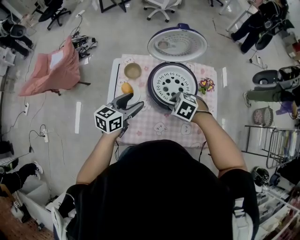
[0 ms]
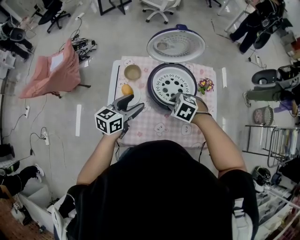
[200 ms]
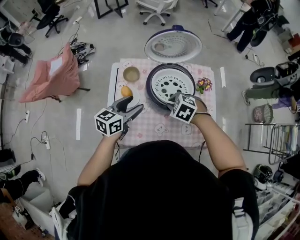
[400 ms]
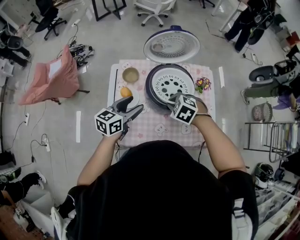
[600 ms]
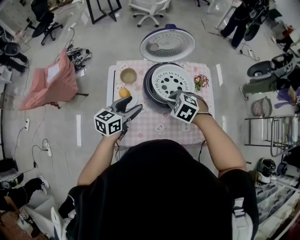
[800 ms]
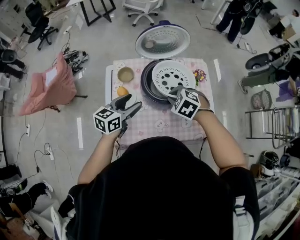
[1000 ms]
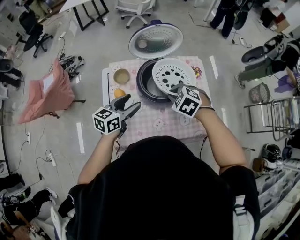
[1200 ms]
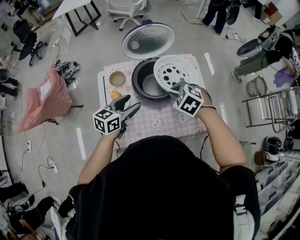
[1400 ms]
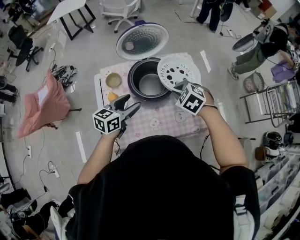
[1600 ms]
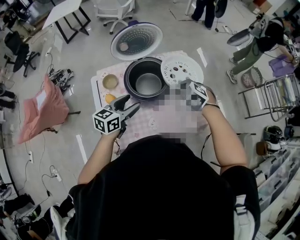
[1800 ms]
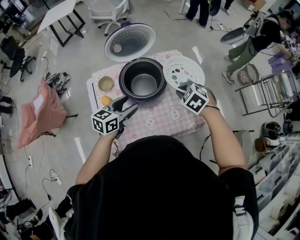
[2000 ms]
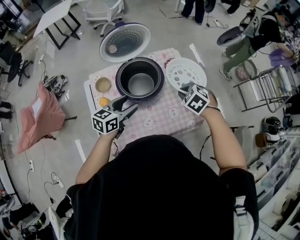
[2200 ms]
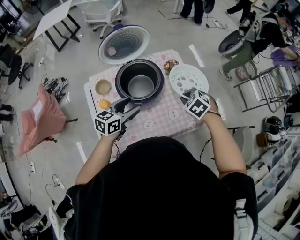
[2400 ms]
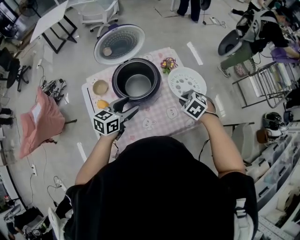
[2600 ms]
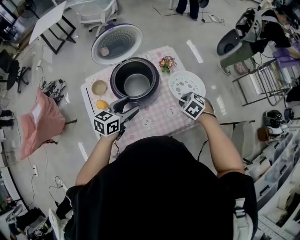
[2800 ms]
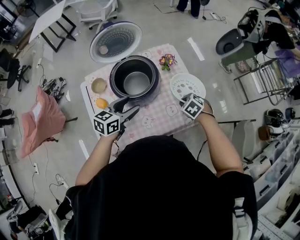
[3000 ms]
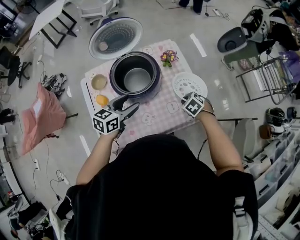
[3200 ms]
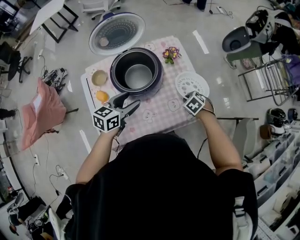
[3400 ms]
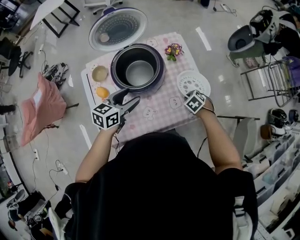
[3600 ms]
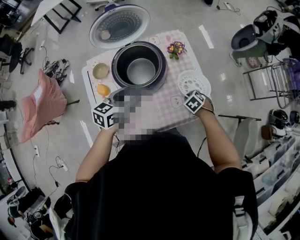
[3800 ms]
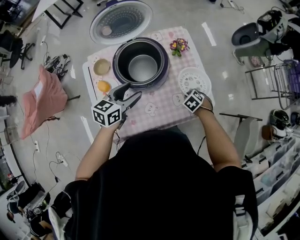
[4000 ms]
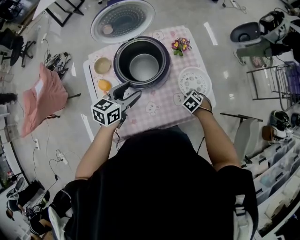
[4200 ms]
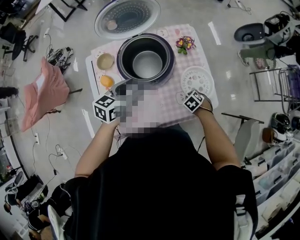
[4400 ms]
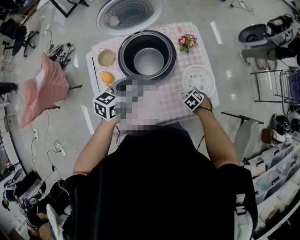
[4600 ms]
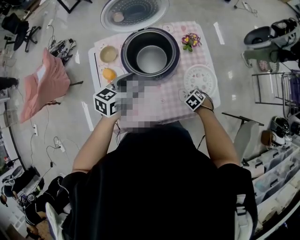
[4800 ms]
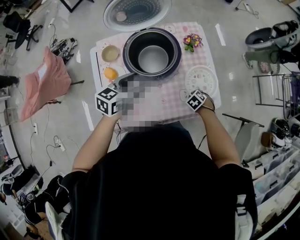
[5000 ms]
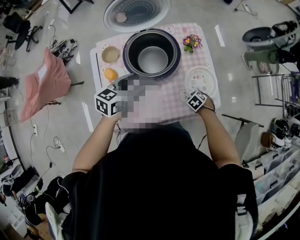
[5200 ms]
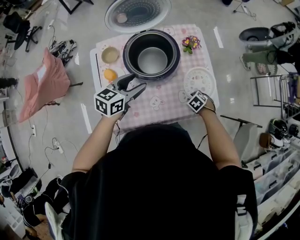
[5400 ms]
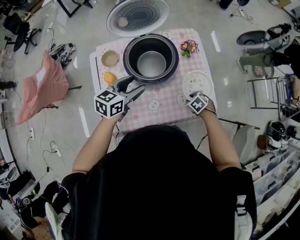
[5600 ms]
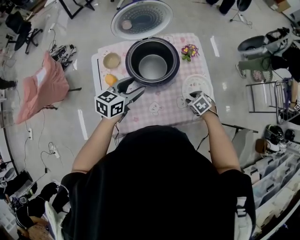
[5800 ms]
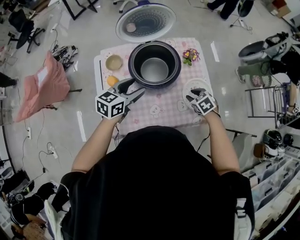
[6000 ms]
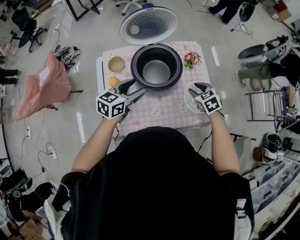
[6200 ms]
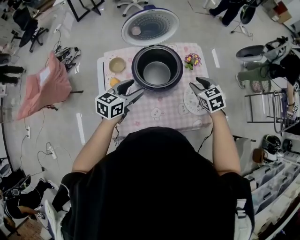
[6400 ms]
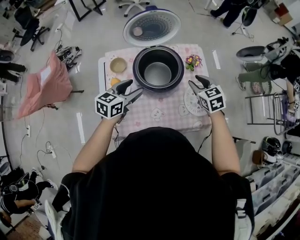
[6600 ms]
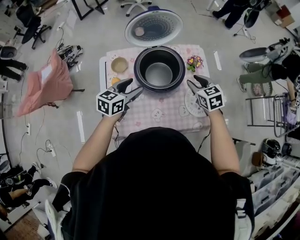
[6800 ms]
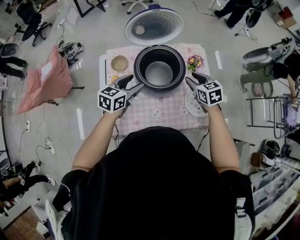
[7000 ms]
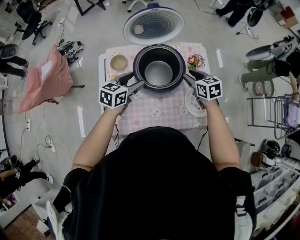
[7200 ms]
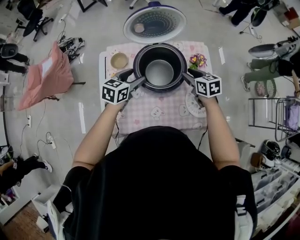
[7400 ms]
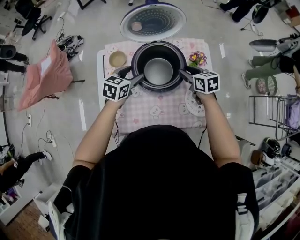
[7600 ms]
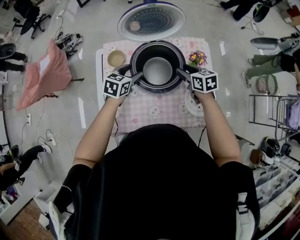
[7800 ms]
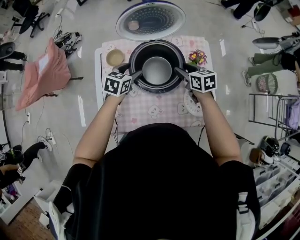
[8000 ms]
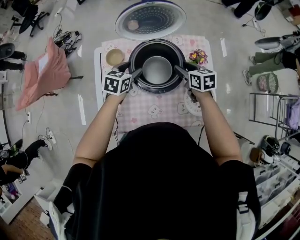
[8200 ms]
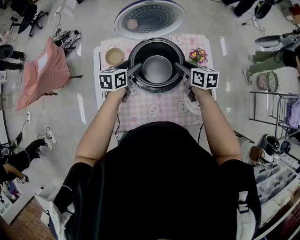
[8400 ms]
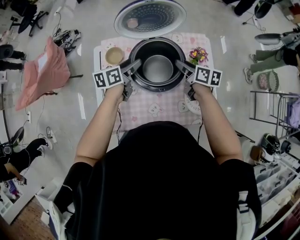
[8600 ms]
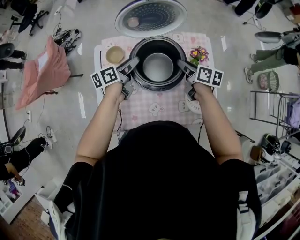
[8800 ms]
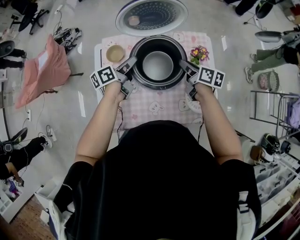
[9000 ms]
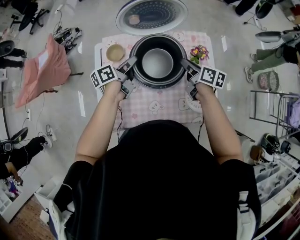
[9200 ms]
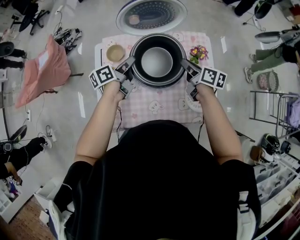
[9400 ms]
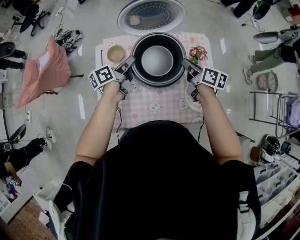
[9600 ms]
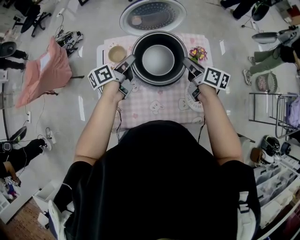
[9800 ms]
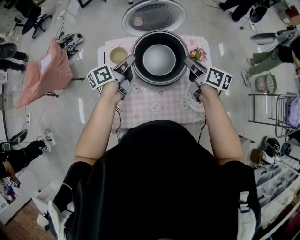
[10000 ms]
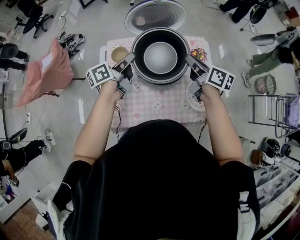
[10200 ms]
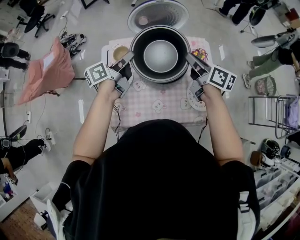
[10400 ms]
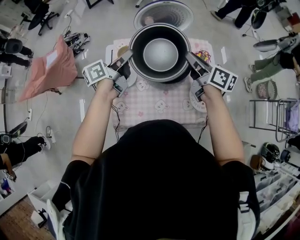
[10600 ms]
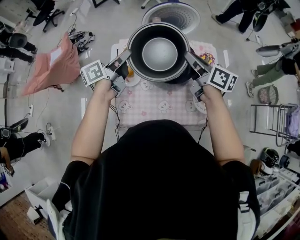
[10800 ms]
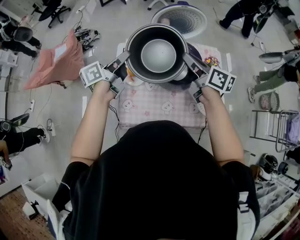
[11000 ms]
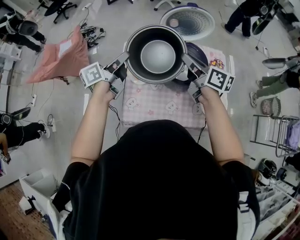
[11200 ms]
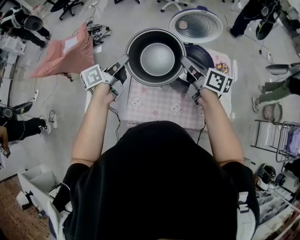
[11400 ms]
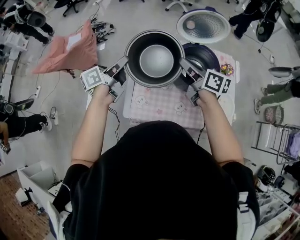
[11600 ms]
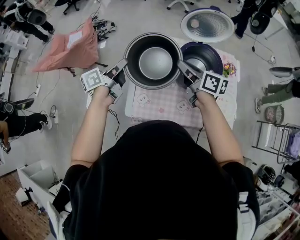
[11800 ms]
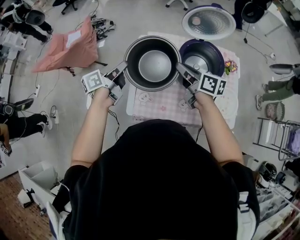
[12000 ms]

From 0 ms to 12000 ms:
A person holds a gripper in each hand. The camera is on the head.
From 0 ms to 1600 ms: The right gripper moves about 10 cm, and turns by approximately 30 degrees, while the left gripper shifts by approximately 5 cm.
From 1600 ms to 3000 ms: The right gripper moves to the right and downward, approximately 20 cm, and turns by roughly 20 degrees, while the left gripper heads to the right, covering about 10 cm.
From 3000 ms to 4400 ms: The right gripper goes approximately 15 cm downward.
From 4400 ms to 6000 ms: The right gripper goes roughly 15 cm upward.
From 6000 ms to 7600 ms: The right gripper travels forward, to the left and upward by about 15 cm, and turns by roughly 30 degrees, while the left gripper heads forward and downward, covering some 10 cm.
From 7600 ms to 9000 ms: The right gripper swivels about 30 degrees; the left gripper travels forward by approximately 5 cm, rolls counterclockwise, seen from behind, by approximately 50 degrees, and closes.
From 9000 ms to 10400 ms: The grippers both shift upward by about 15 cm. The left gripper closes its fingers.
From 10400 ms to 12000 ms: The grippers both shift to the left by approximately 25 cm.

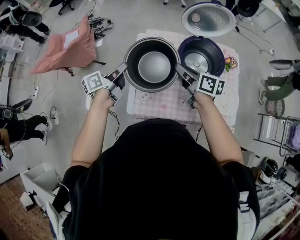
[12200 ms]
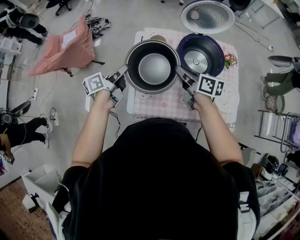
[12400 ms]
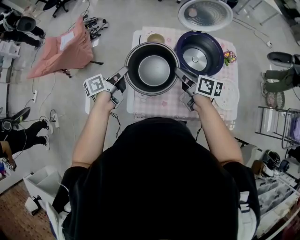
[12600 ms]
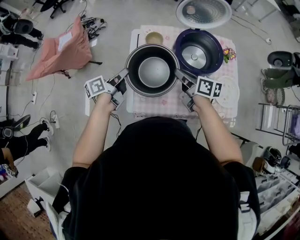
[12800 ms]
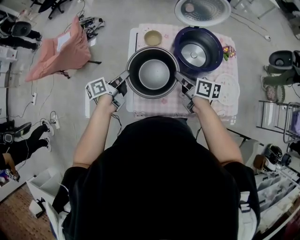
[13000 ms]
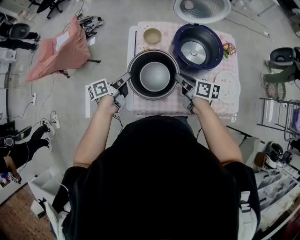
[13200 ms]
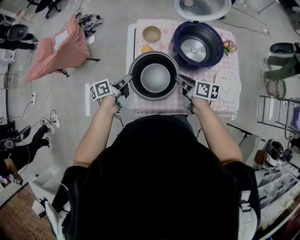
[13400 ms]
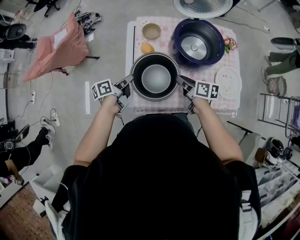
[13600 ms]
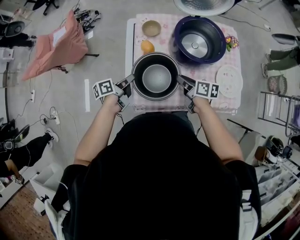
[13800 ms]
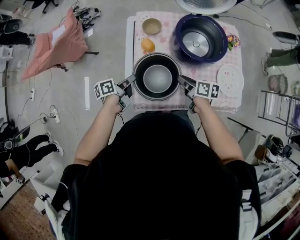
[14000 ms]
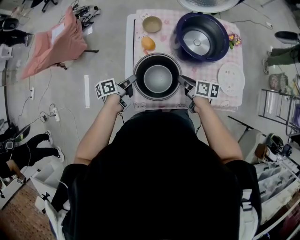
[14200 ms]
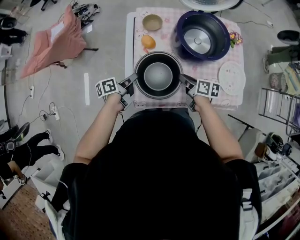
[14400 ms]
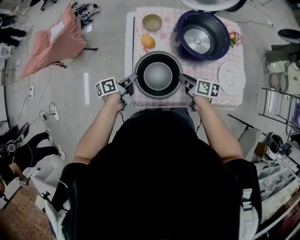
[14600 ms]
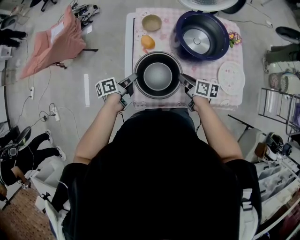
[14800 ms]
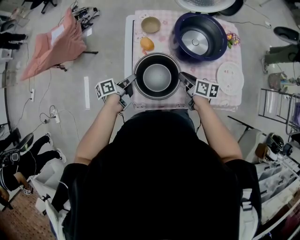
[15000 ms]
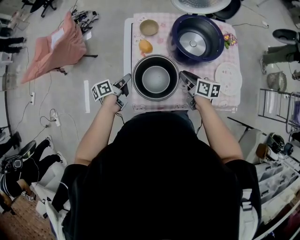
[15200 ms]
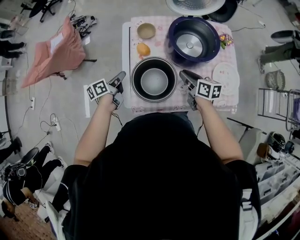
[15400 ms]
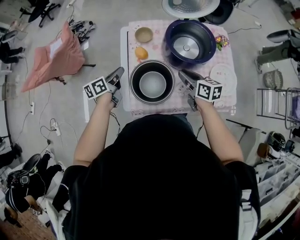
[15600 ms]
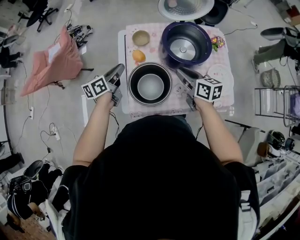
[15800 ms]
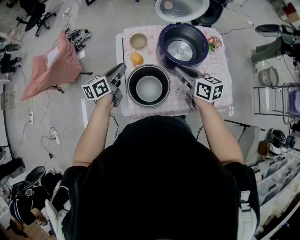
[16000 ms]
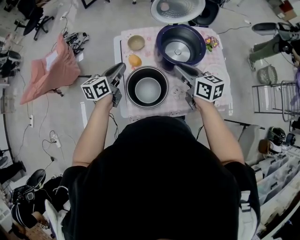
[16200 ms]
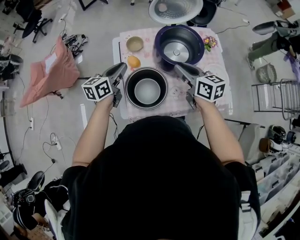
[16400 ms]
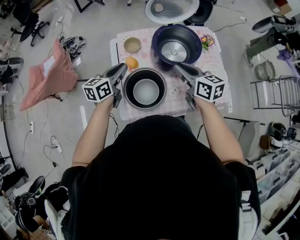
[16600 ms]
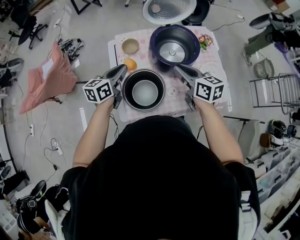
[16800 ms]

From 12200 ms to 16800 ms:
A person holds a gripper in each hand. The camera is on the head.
From 12200 ms to 13800 ms: The right gripper travels downward and backward by about 20 cm. Meanwhile the left gripper is displaced downward by some 15 cm.
From 13800 ms to 15200 ms: The grippers make only small movements.
From 15200 ms to 16800 ms: The right gripper is displaced upward by roughly 15 cm, and rotates approximately 20 degrees. Meanwhile the left gripper shifts approximately 20 cm upward, to the right and forward, and rotates around the line of its fingers by roughly 50 degrees, clockwise from behind.

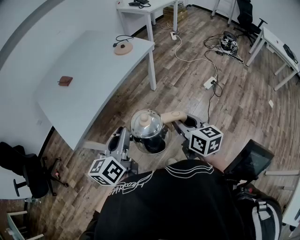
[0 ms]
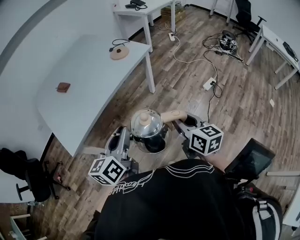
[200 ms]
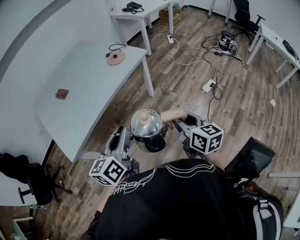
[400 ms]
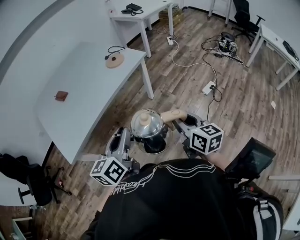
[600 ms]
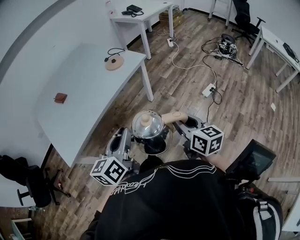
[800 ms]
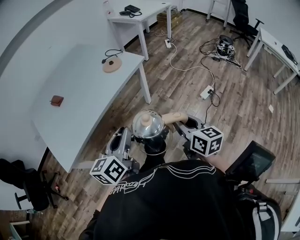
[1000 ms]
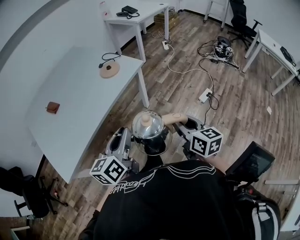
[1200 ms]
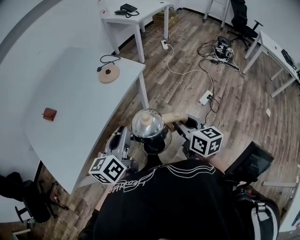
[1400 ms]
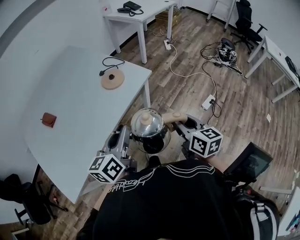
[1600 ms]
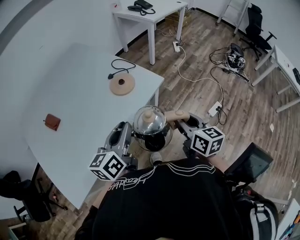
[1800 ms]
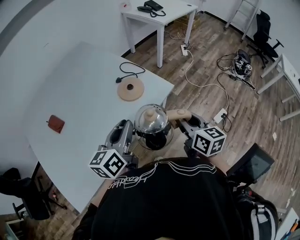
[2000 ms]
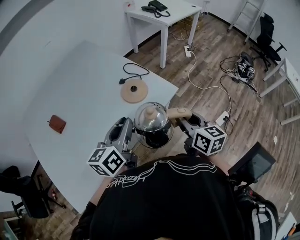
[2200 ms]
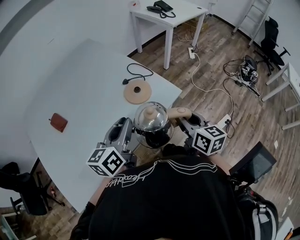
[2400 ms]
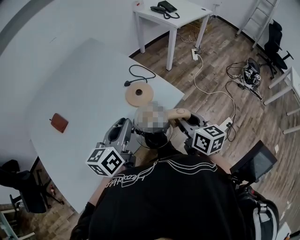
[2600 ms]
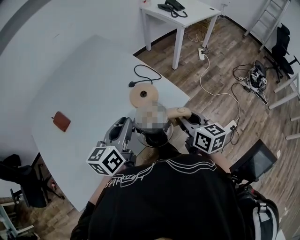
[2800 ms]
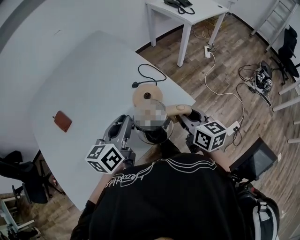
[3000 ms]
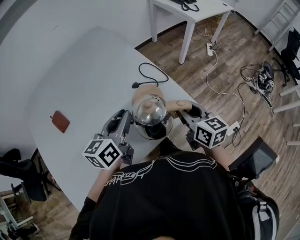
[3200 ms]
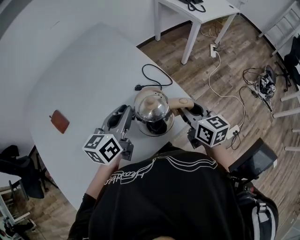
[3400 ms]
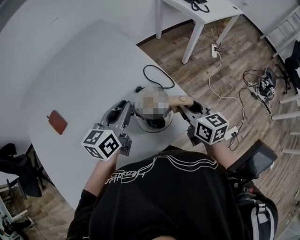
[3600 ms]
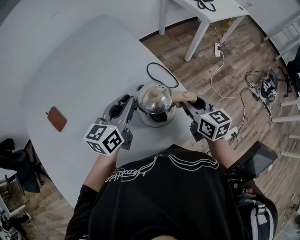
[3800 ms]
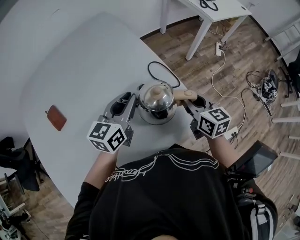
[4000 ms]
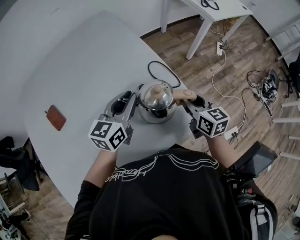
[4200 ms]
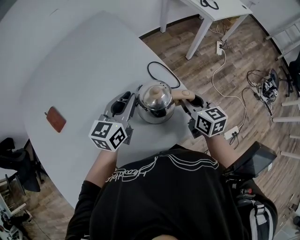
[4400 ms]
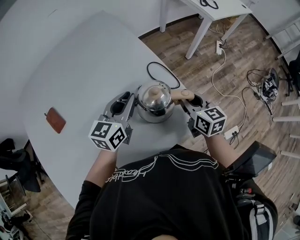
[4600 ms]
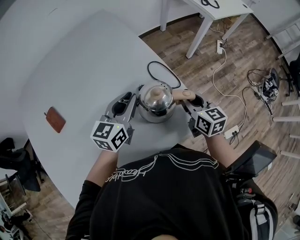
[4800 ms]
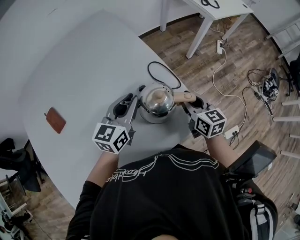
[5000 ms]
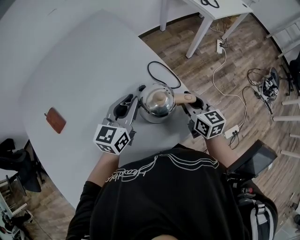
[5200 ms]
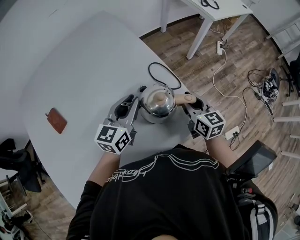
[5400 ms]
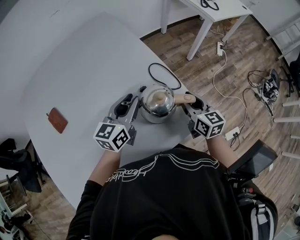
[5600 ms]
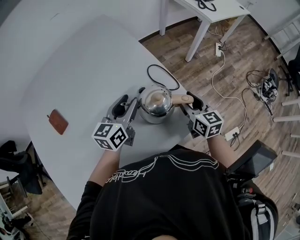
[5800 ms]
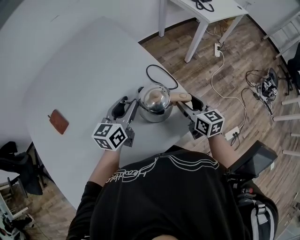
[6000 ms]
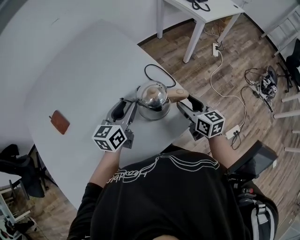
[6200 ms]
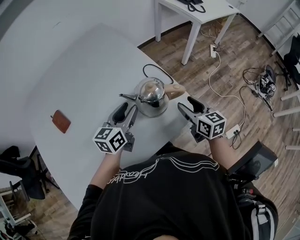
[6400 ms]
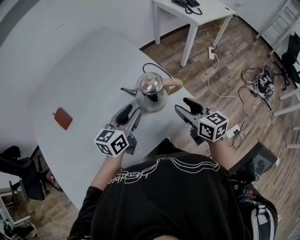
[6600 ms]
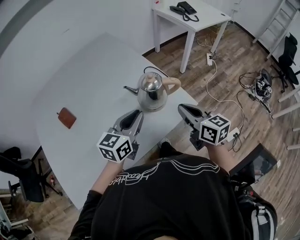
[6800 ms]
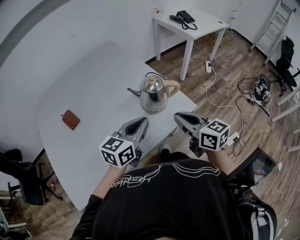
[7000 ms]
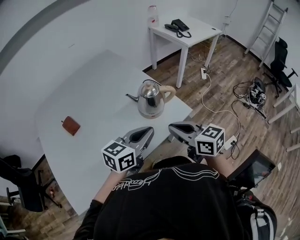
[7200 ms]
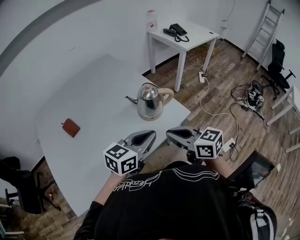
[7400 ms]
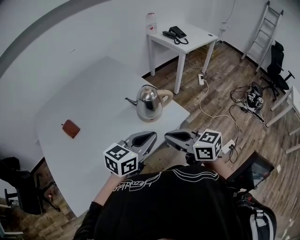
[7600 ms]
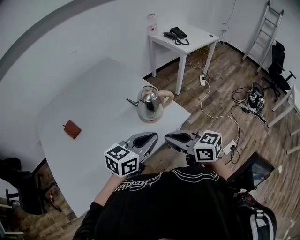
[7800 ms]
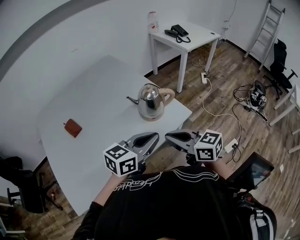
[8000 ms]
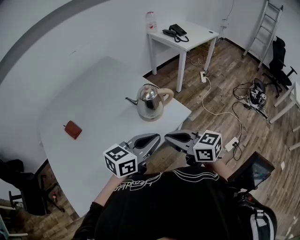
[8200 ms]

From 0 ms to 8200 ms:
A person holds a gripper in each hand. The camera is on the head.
From 0 ms to 1600 ms: Both grippers move forward, some 30 cm.
From 1600 ms to 3200 ms: Both grippers travel together forward, roughly 30 cm.
From 3200 ms to 5000 ms: The two grippers go about 10 cm forward and downward.
From 5000 ms to 6600 ms: Both grippers travel together backward, approximately 10 cm. The left gripper opens up. The right gripper opens up.
From 6600 ms to 8200 ms: The right gripper travels backward, upward and to the left by roughly 20 cm, swivels some 20 degrees, and closes up, while the left gripper shifts roughly 20 cm backward, upward and to the right, swivels some 30 degrees, and closes.
